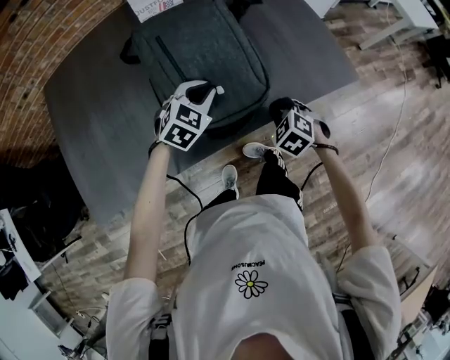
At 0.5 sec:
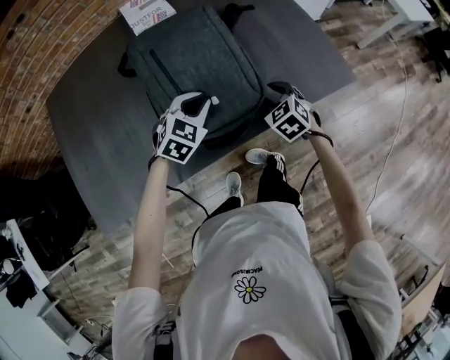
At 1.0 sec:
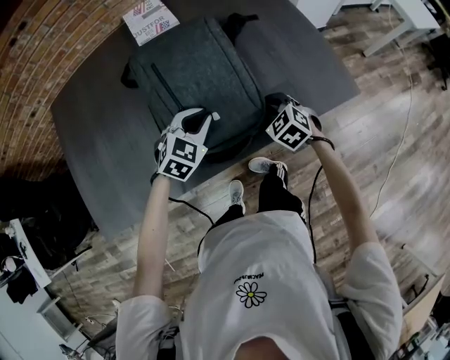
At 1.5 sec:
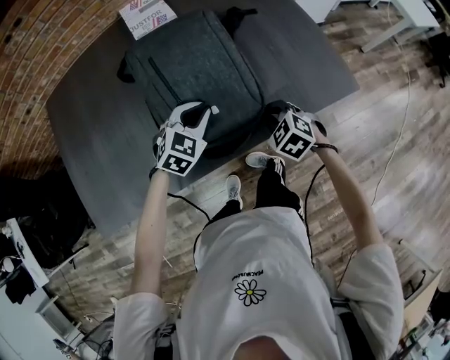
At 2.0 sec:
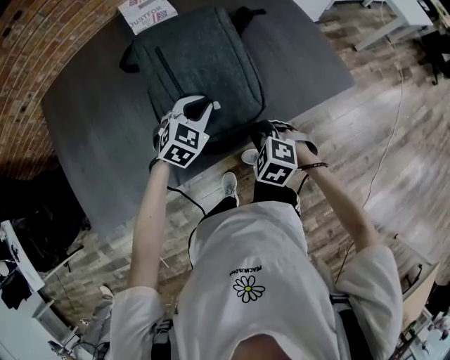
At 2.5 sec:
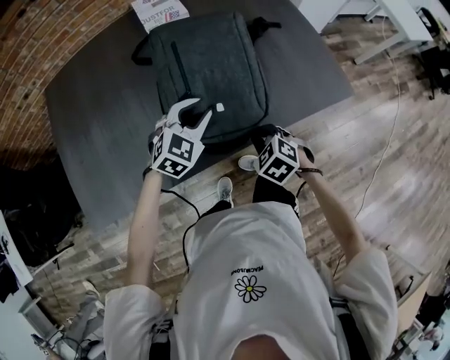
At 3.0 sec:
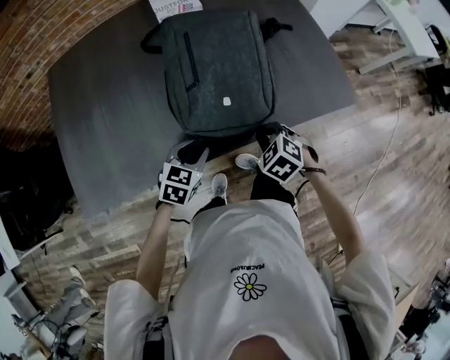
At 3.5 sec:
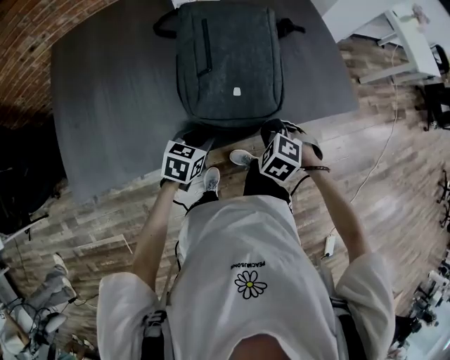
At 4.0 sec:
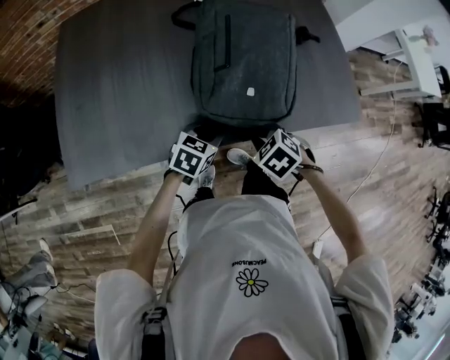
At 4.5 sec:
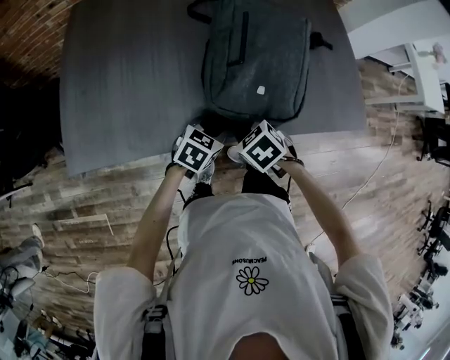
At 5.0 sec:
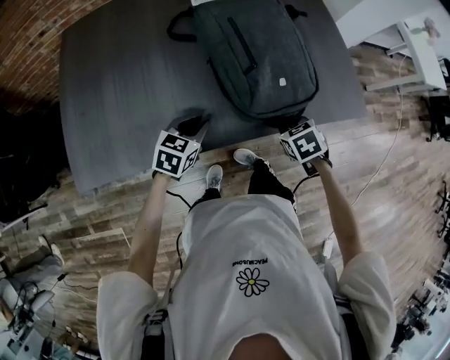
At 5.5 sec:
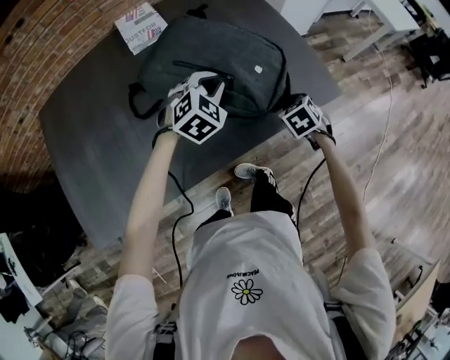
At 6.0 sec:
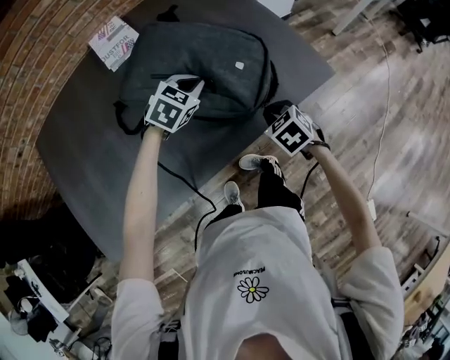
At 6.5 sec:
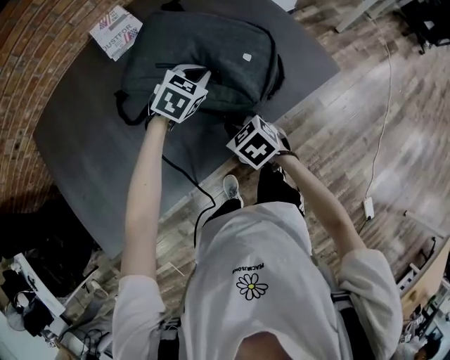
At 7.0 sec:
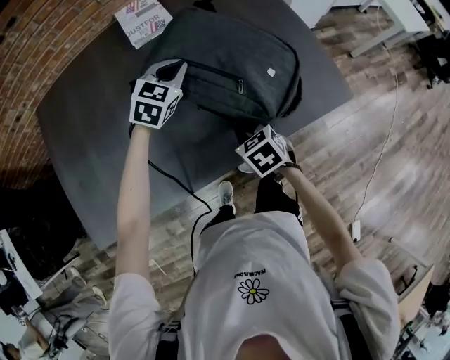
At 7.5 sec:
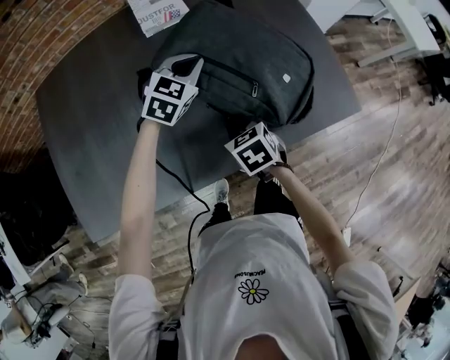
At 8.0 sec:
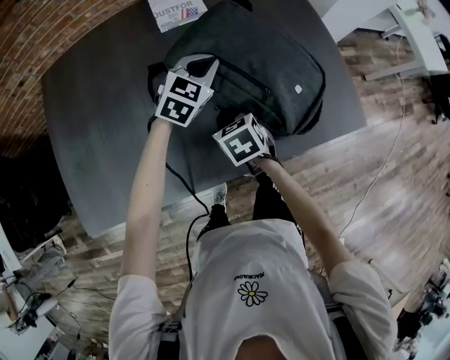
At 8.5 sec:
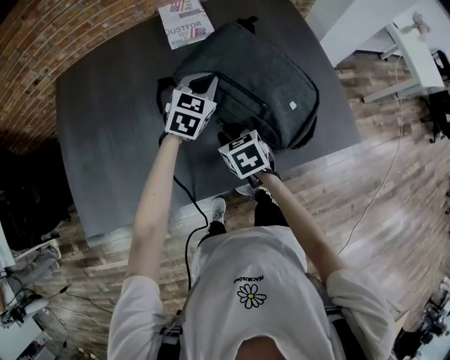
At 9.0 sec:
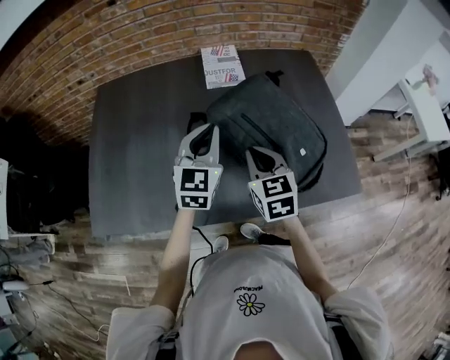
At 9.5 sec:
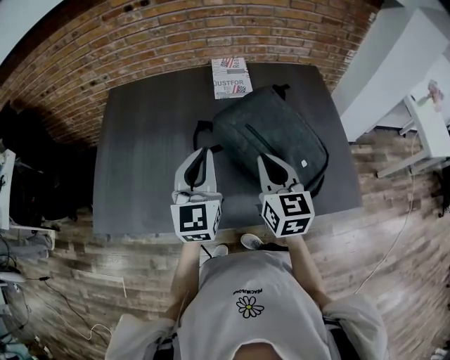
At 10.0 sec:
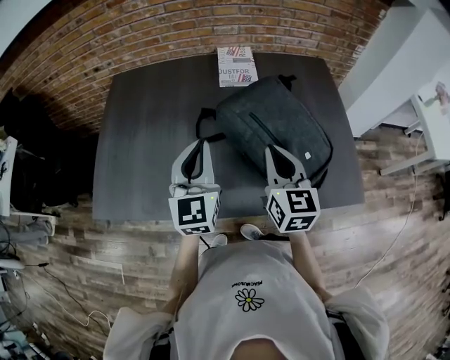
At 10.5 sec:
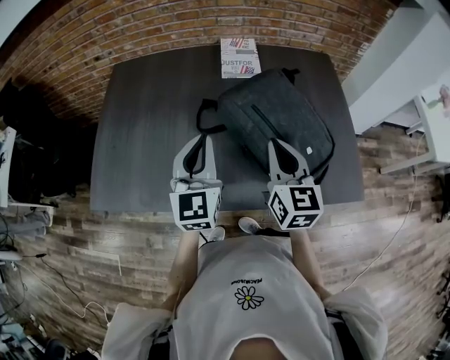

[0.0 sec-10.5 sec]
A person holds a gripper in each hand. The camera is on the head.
0.0 sec to 2.0 sec: The right gripper shifts approximately 5 cm to the left, and opens and closes again.
2.0 sec to 4.0 sec: The right gripper goes approximately 5 cm to the left. The left gripper heads backward, downward and to the left, covering approximately 15 cm, and changes its angle by roughly 40 degrees.
4.0 sec to 6.5 sec: The left gripper changes place by roughly 30 cm, turns by some 40 degrees, and closes its fingers. The right gripper swivels about 40 degrees.
6.5 sec to 8.5 sec: The two grippers go about 15 cm to the left and forward. The left gripper rotates some 30 degrees.
8.5 sec to 10.5 sec: The right gripper is displaced upward by roughly 20 cm, and tips its fingers upward by some 40 degrees. Meanwhile the left gripper heads backward, upward and to the left, covering roughly 25 cm, and turns by roughly 40 degrees.

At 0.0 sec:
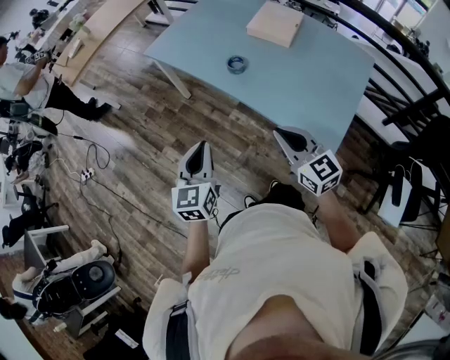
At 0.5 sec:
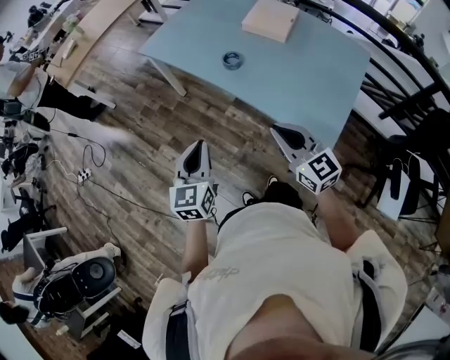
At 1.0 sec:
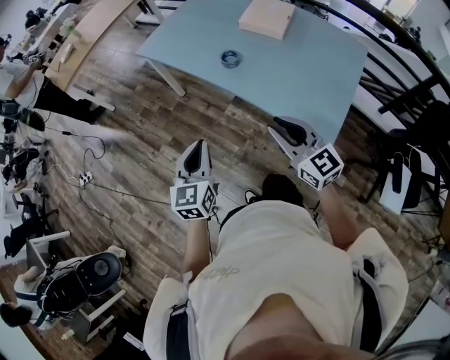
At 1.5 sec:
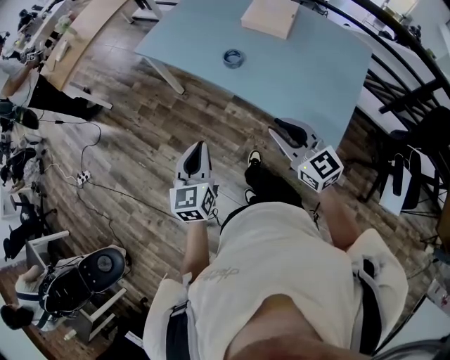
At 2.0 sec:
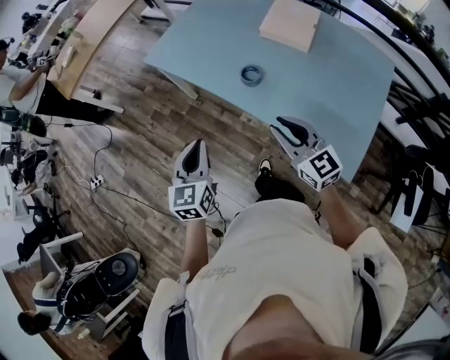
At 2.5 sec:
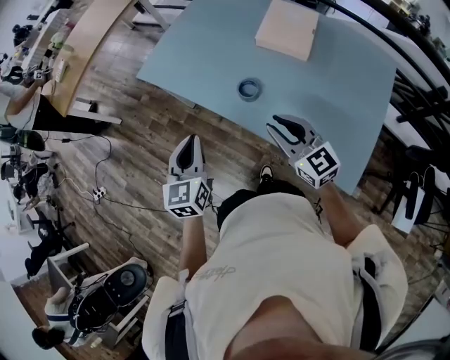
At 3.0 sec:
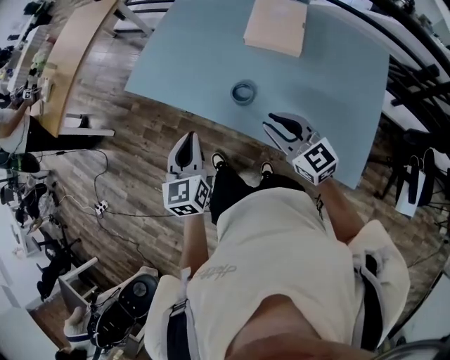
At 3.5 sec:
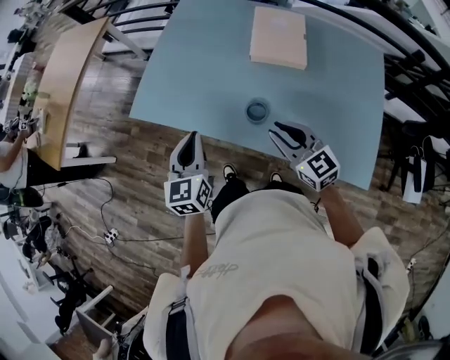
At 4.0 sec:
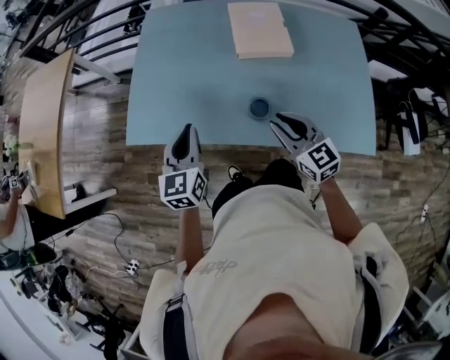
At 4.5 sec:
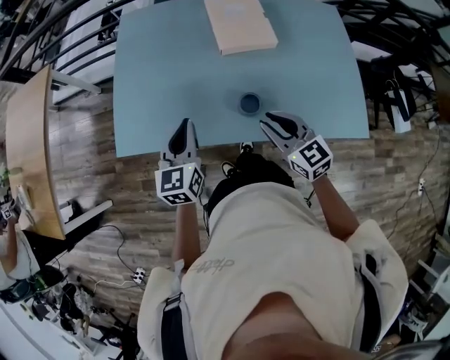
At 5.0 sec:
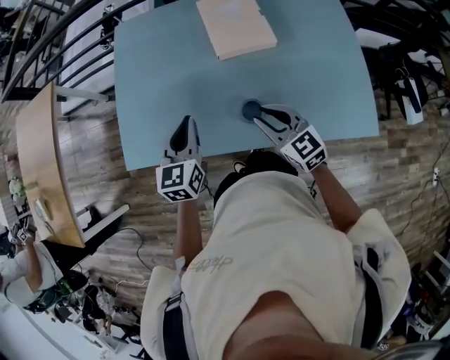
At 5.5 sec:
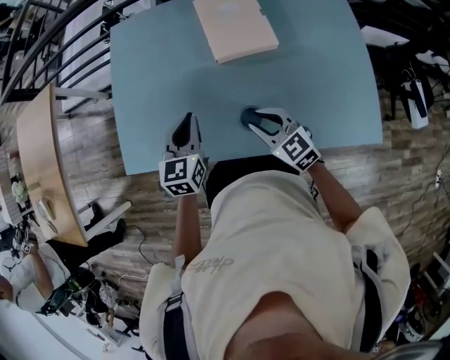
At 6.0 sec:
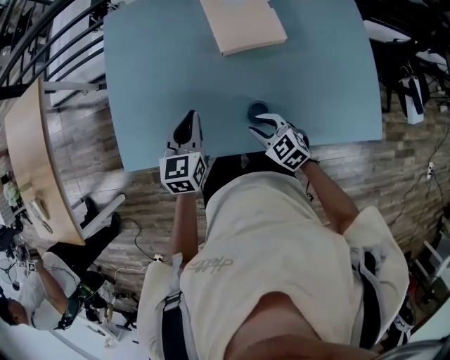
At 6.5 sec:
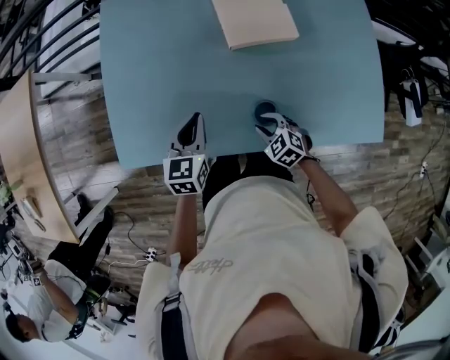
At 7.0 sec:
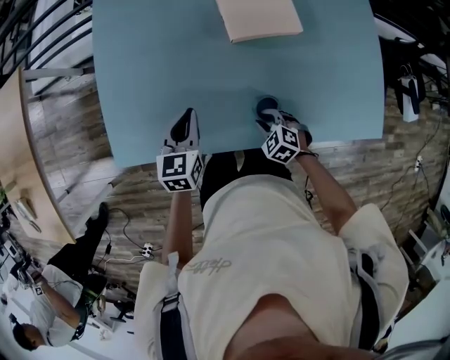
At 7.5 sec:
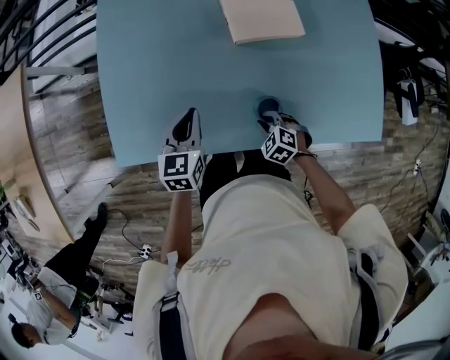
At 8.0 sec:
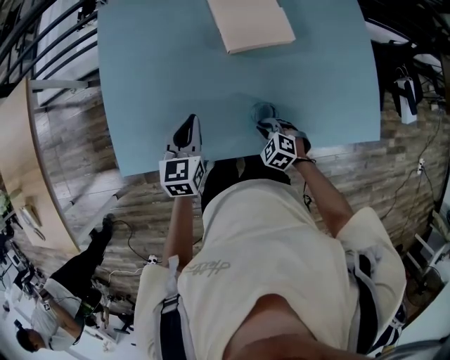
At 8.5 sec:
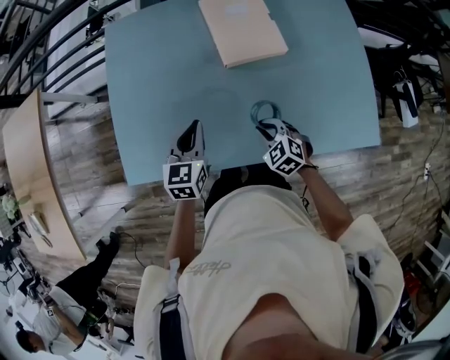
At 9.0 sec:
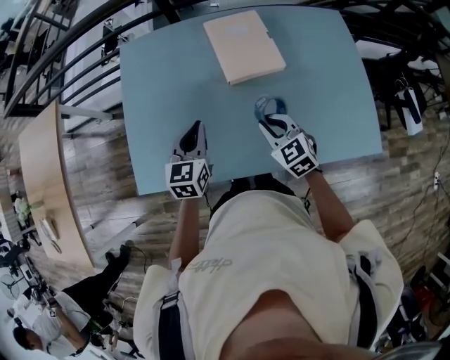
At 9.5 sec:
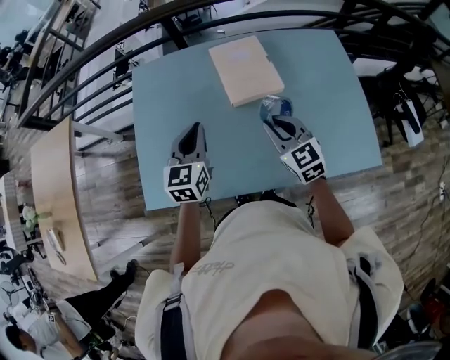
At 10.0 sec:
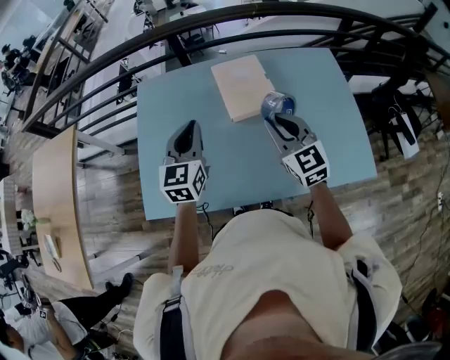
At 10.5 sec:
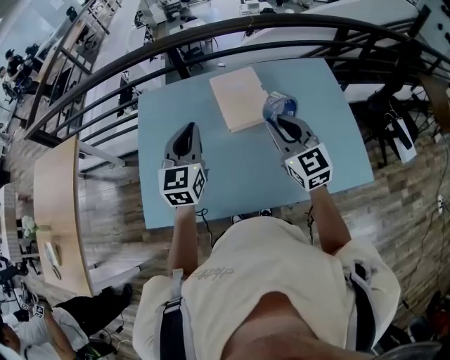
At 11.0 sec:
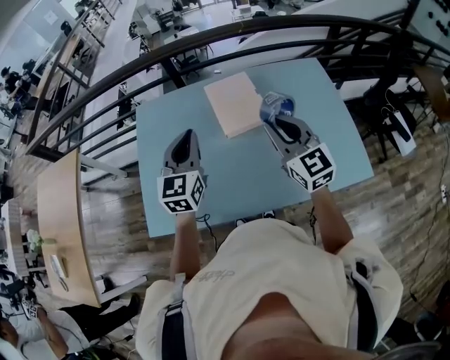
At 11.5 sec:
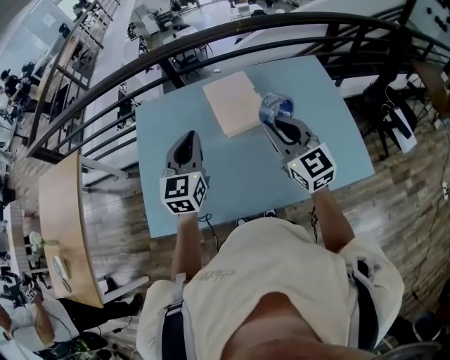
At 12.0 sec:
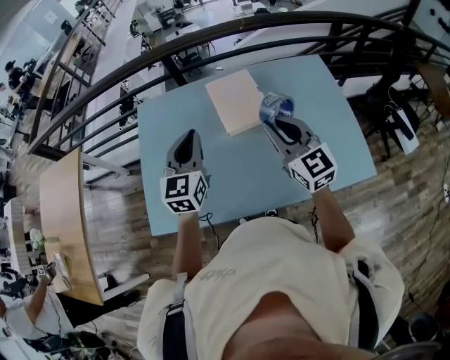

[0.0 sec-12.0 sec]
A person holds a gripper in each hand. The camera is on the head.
0.0 sec to 2.0 sec: Both grippers move forward, some 15 cm. The right gripper opens its fingers.
2.0 sec to 4.0 sec: The left gripper changes place by some 35 cm, and swivels some 30 degrees; the right gripper changes place by about 20 cm, and swivels approximately 30 degrees.
4.0 sec to 6.0 sec: The left gripper goes some 15 cm forward, to the right and downward, while the right gripper moves downward, about 15 cm, and changes its angle by some 20 degrees.
6.0 sec to 8.0 sec: The right gripper goes some 10 cm downward, and swivels some 30 degrees. Meanwhile the left gripper ends up approximately 5 cm from where it was.
8.0 sec to 10.0 sec: The left gripper goes some 20 cm upward, and turns by some 20 degrees, while the right gripper goes some 35 cm upward, and points its fingers about 50 degrees further upward.
10.0 sec to 12.0 sec: The right gripper shifts approximately 5 cm upward.

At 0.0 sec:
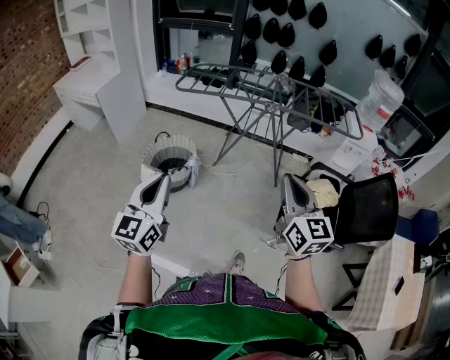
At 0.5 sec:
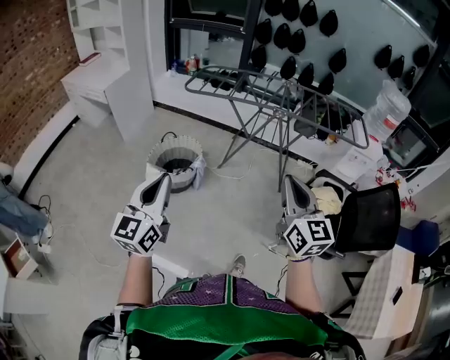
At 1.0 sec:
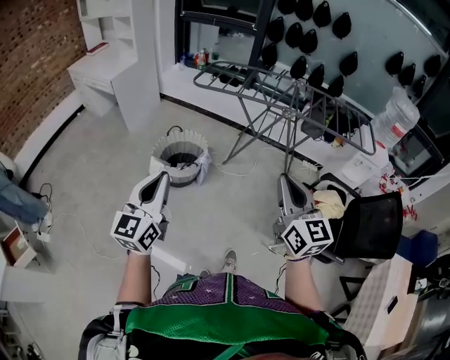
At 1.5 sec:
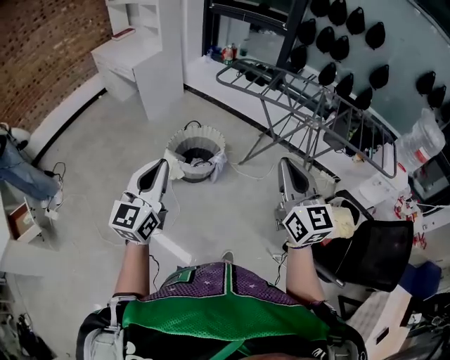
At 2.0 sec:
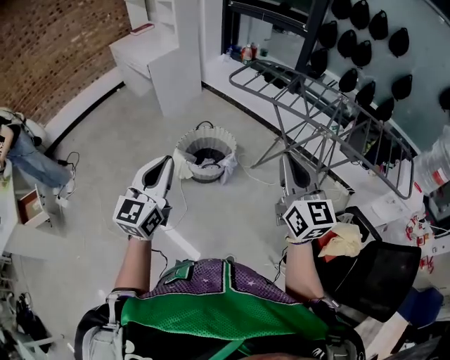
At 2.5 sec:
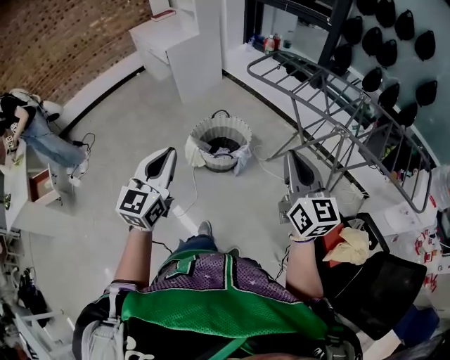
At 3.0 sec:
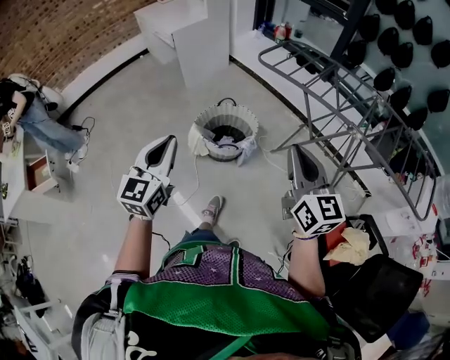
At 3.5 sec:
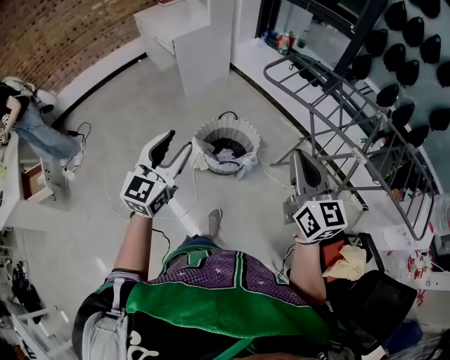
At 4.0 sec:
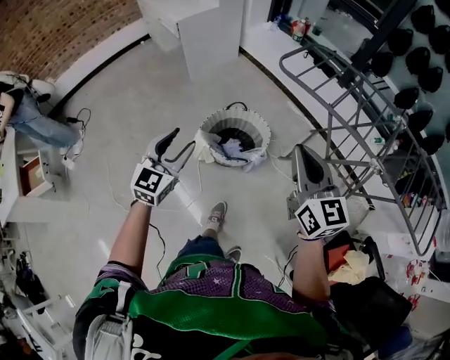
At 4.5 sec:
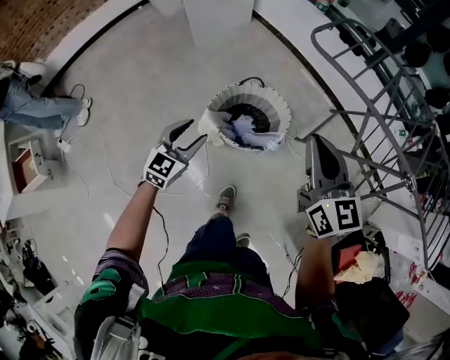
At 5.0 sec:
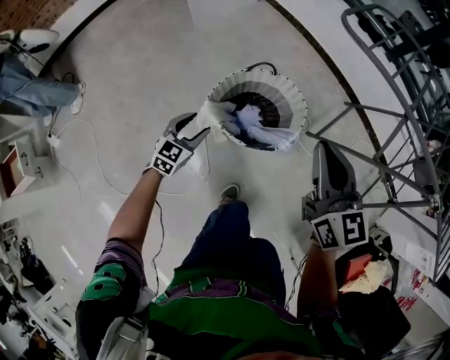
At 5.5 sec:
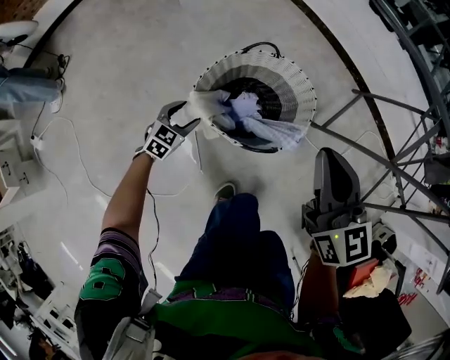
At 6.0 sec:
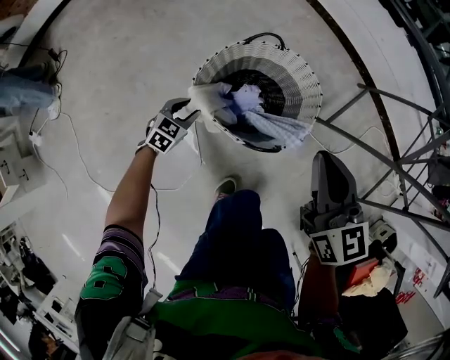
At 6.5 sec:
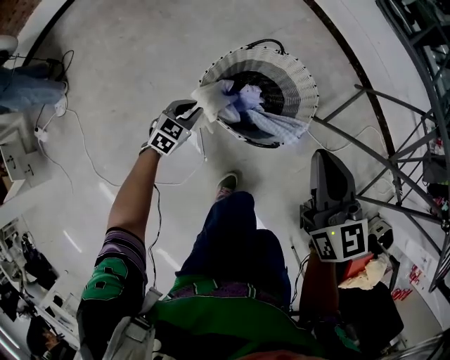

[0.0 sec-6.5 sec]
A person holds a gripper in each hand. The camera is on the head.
0.0 sec to 2.0 sec: The right gripper is displaced forward by approximately 20 cm, and changes its angle by some 20 degrees, while the left gripper goes about 10 cm forward, and turns by roughly 20 degrees.
2.0 sec to 4.5 sec: The right gripper is displaced forward, downward and to the left by about 40 cm. The left gripper shifts approximately 50 cm downward and forward, changes its angle by approximately 20 degrees, and opens.
4.5 sec to 6.5 sec: Both grippers move downward, some 30 cm. The left gripper rotates some 20 degrees, and closes.
